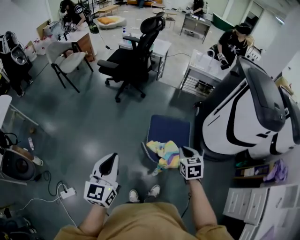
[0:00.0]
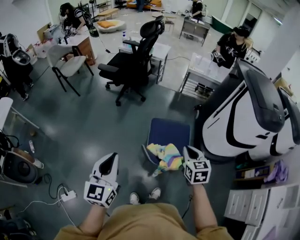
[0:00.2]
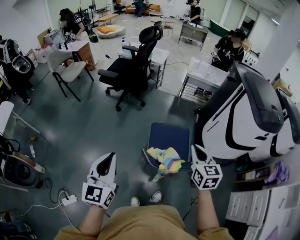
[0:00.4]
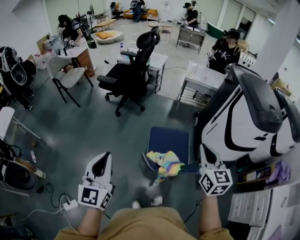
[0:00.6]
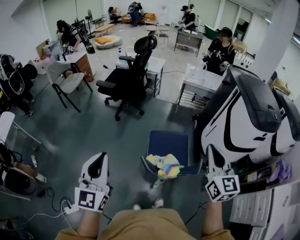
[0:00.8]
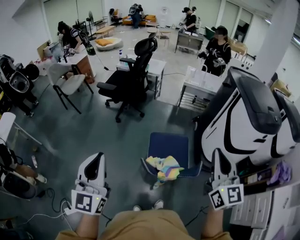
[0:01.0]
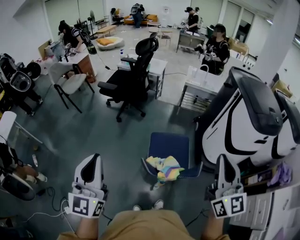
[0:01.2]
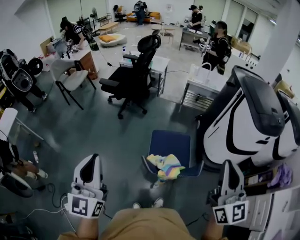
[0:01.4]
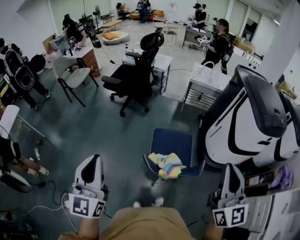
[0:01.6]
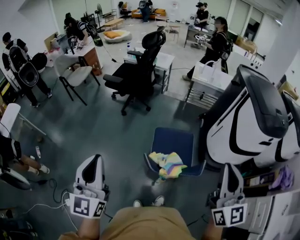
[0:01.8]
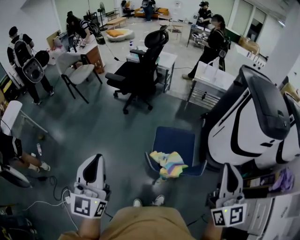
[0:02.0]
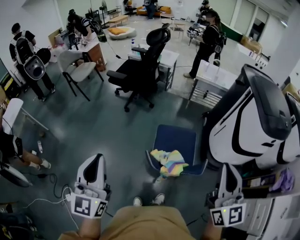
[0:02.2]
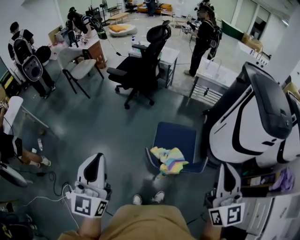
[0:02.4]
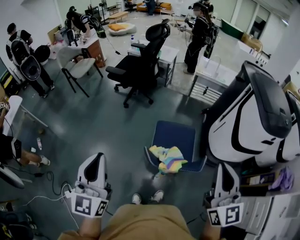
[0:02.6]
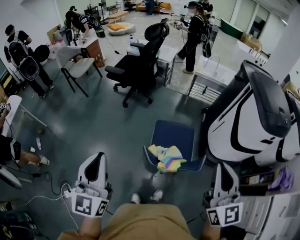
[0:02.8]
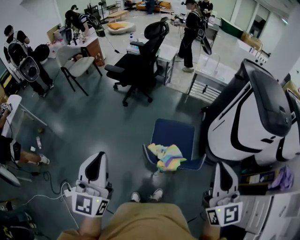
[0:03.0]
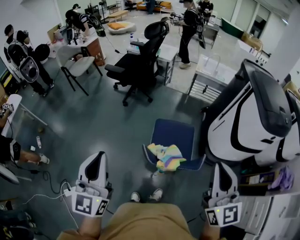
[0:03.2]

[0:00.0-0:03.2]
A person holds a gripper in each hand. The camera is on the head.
0:00.0 to 0:01.6: The left gripper goes some 15 cm upward, and changes its angle by approximately 20 degrees. Meanwhile the right gripper travels upward by some 35 cm, and points its fingers roughly 50 degrees further upward.
0:01.6 to 0:03.2: The left gripper ends up some 5 cm from where it was.

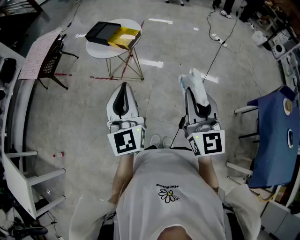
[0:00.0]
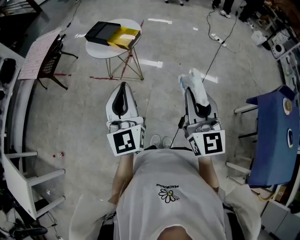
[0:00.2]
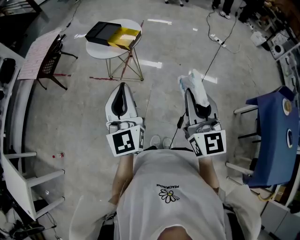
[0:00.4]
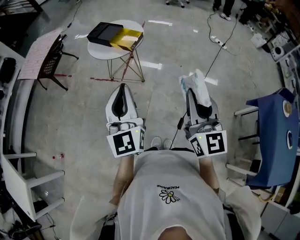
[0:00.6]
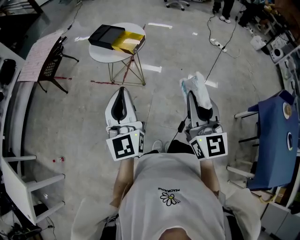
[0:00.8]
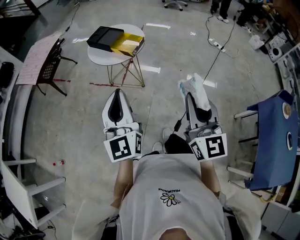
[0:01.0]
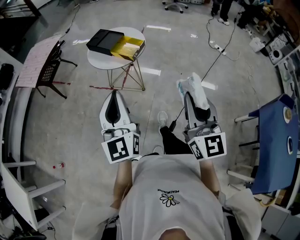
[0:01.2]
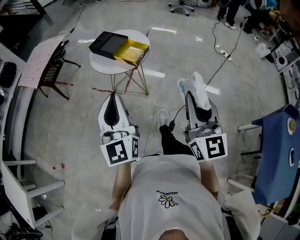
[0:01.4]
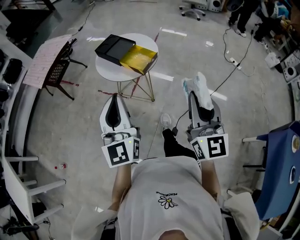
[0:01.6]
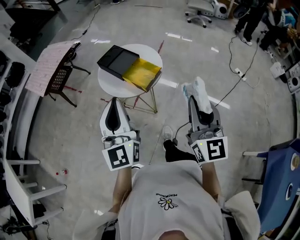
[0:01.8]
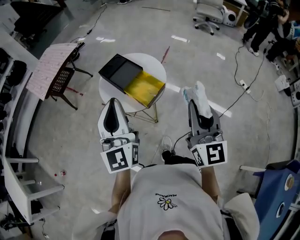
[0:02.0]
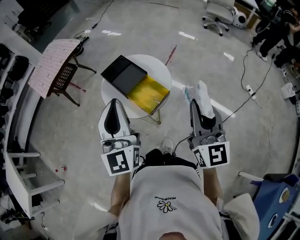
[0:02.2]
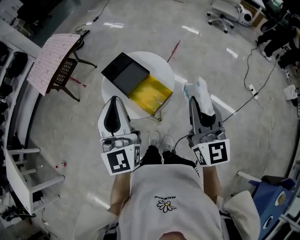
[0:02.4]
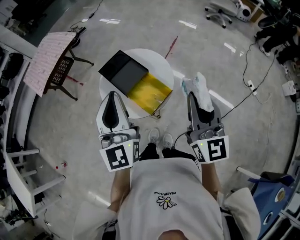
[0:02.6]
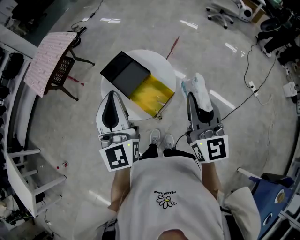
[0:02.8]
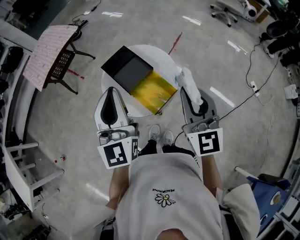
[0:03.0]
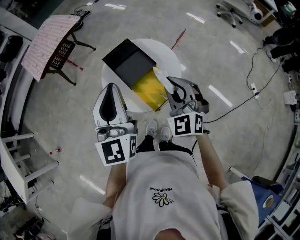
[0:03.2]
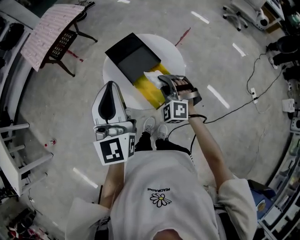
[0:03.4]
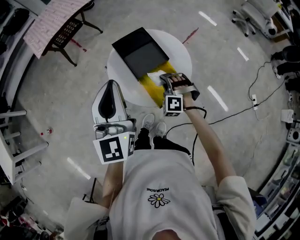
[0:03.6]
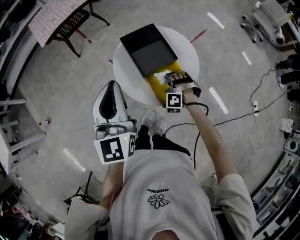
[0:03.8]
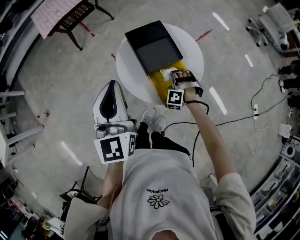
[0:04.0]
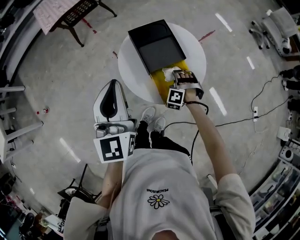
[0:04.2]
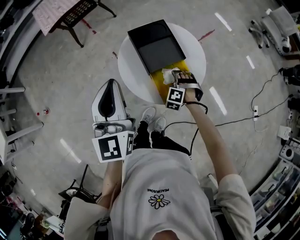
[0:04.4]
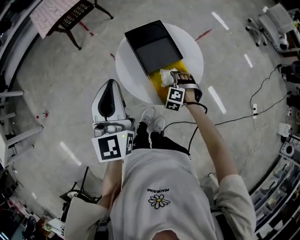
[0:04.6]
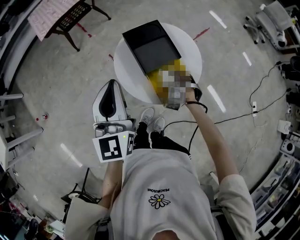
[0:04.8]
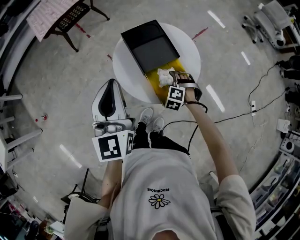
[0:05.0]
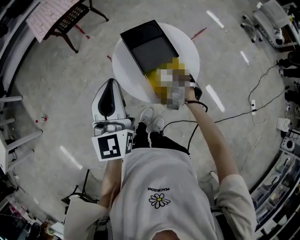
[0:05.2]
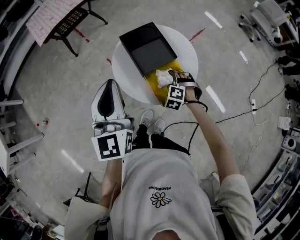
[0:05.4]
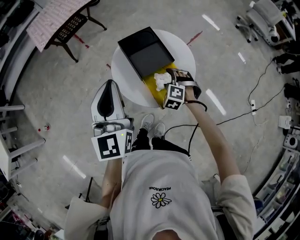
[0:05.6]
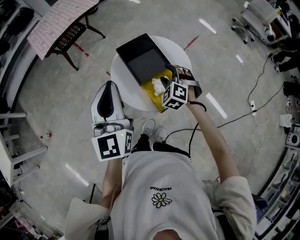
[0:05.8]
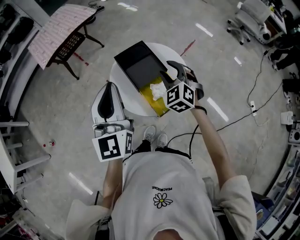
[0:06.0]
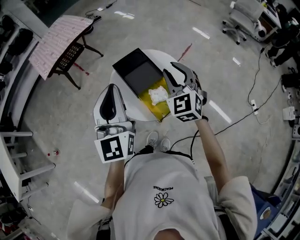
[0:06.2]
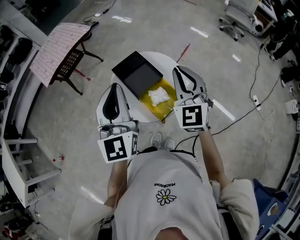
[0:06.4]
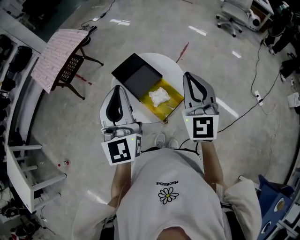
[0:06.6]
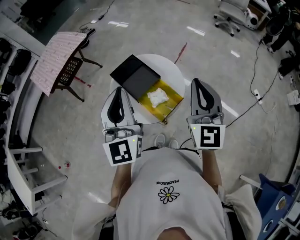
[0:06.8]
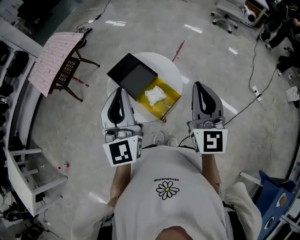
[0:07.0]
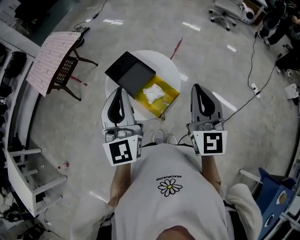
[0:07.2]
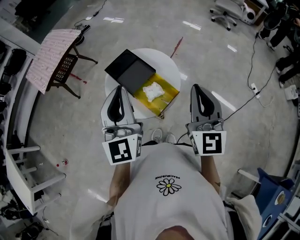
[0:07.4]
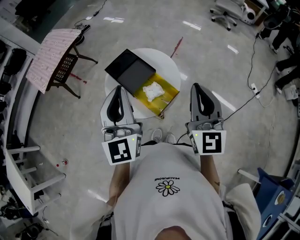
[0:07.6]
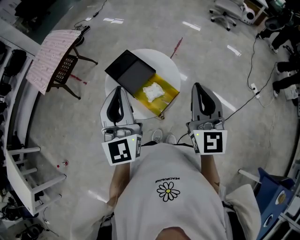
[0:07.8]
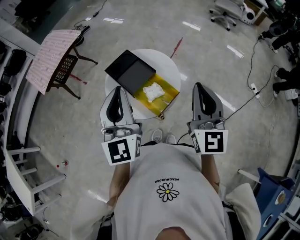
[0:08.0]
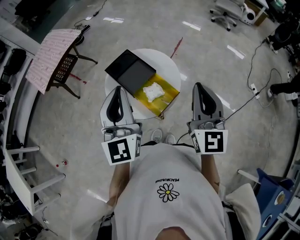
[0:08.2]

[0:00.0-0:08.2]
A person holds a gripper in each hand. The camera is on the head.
0:00.0 to 0:01.6: The right gripper heads forward, covering approximately 20 cm. The left gripper is displaced forward and to the left by some 20 cm.
0:01.6 to 0:03.2: Both grippers travel together forward, roughly 40 cm. The right gripper swivels some 50 degrees.
0:03.2 to 0:05.0: The left gripper moves to the left and downward, approximately 10 cm; the right gripper moves downward, approximately 30 cm, tilts its fingers about 50 degrees downward, and opens.
0:05.0 to 0:06.6: The right gripper shifts roughly 40 cm upward, tips its fingers upward by some 70 degrees, and closes up. Meanwhile the left gripper heads upward and to the right, covering about 15 cm, and swivels roughly 20 degrees.
0:06.6 to 0:08.2: The right gripper travels backward by approximately 5 cm.

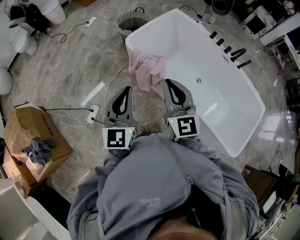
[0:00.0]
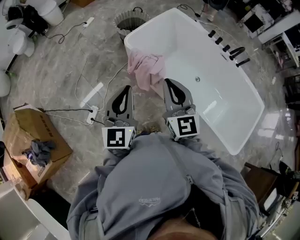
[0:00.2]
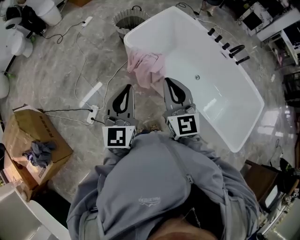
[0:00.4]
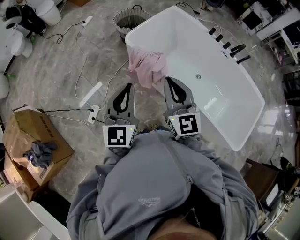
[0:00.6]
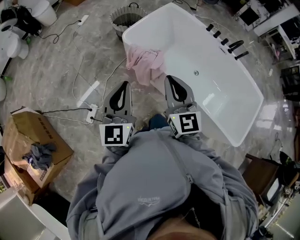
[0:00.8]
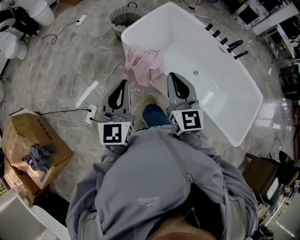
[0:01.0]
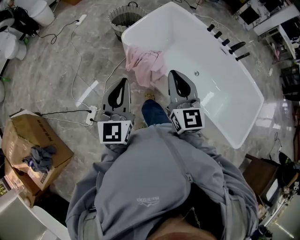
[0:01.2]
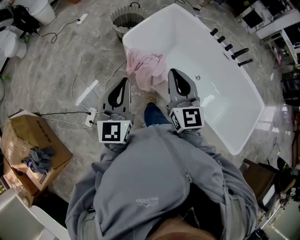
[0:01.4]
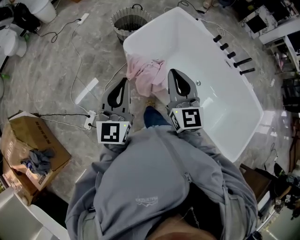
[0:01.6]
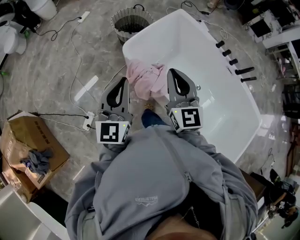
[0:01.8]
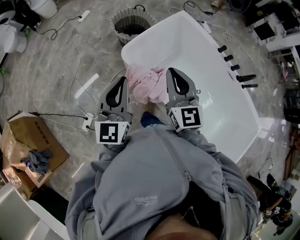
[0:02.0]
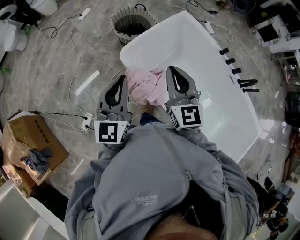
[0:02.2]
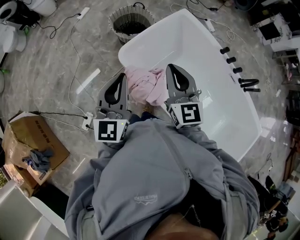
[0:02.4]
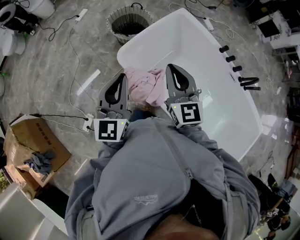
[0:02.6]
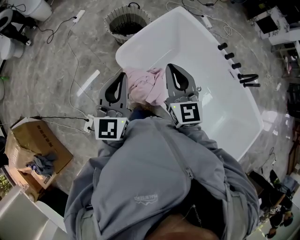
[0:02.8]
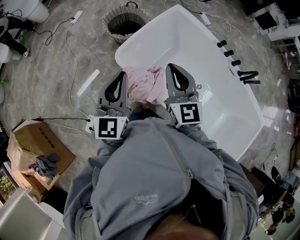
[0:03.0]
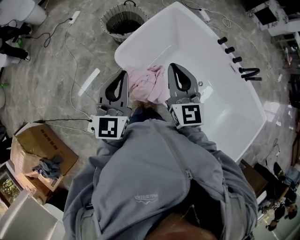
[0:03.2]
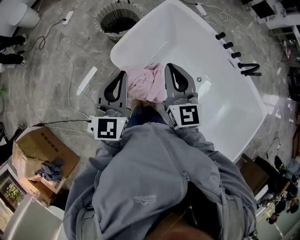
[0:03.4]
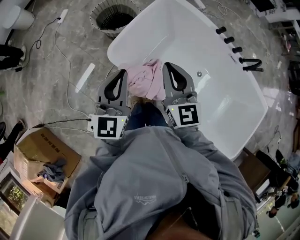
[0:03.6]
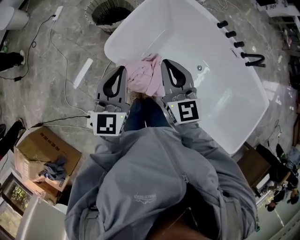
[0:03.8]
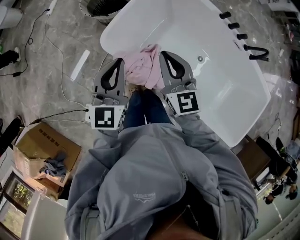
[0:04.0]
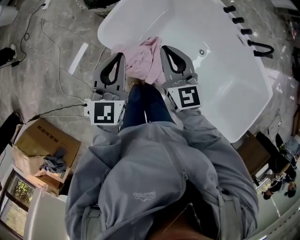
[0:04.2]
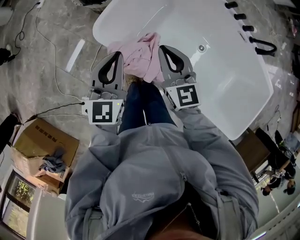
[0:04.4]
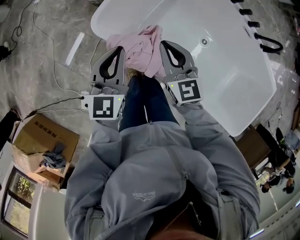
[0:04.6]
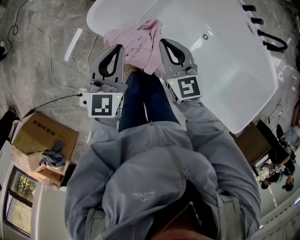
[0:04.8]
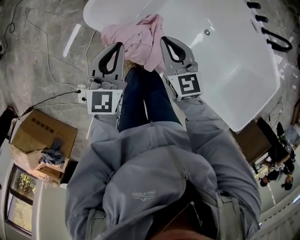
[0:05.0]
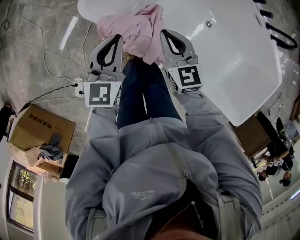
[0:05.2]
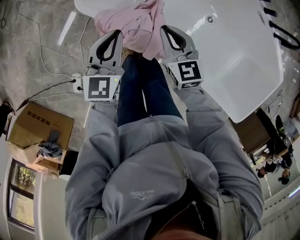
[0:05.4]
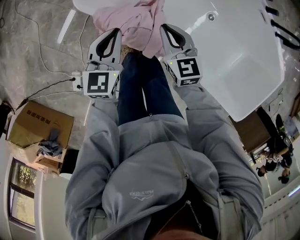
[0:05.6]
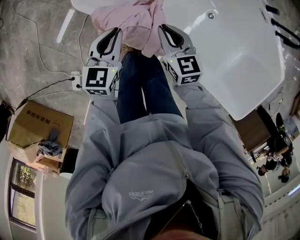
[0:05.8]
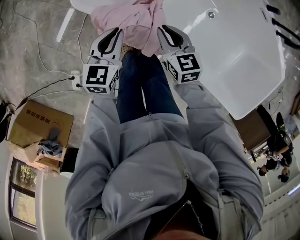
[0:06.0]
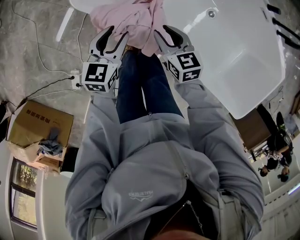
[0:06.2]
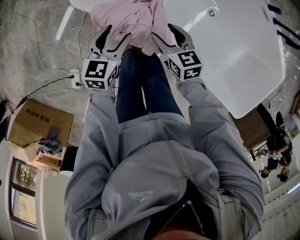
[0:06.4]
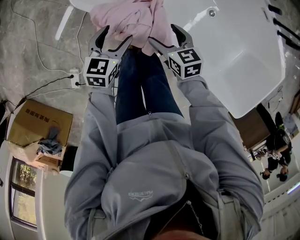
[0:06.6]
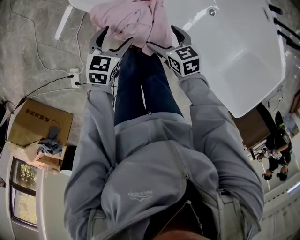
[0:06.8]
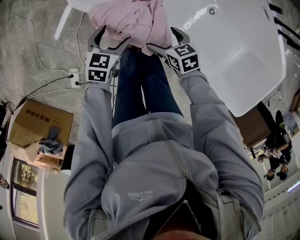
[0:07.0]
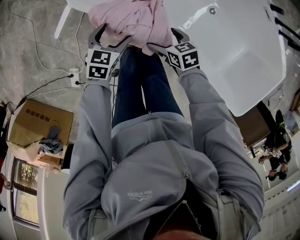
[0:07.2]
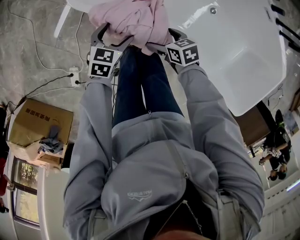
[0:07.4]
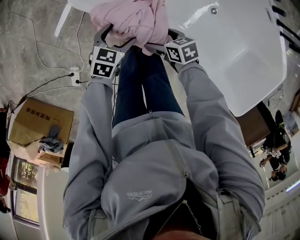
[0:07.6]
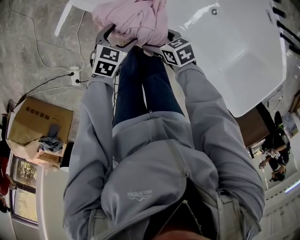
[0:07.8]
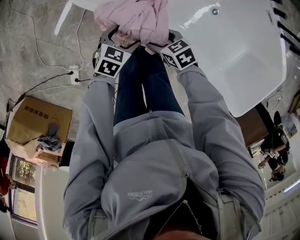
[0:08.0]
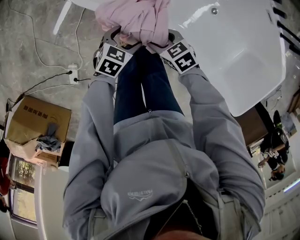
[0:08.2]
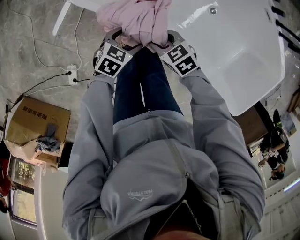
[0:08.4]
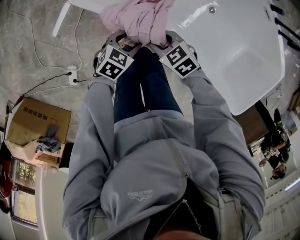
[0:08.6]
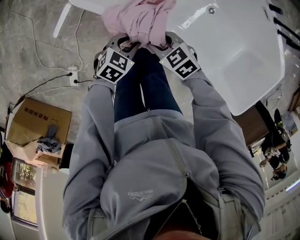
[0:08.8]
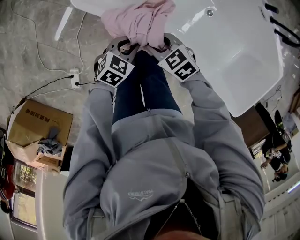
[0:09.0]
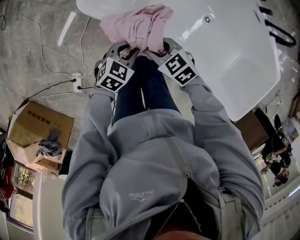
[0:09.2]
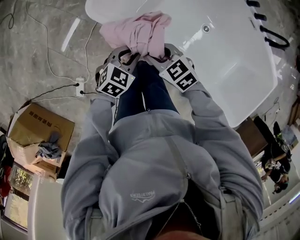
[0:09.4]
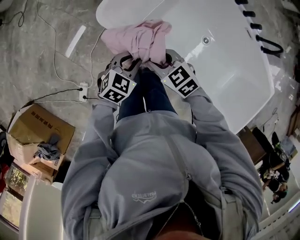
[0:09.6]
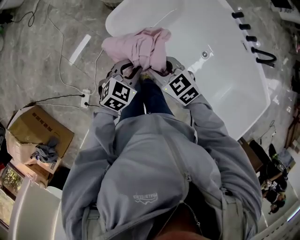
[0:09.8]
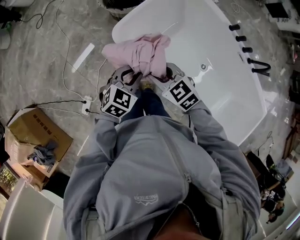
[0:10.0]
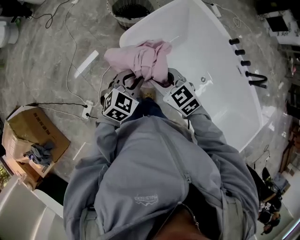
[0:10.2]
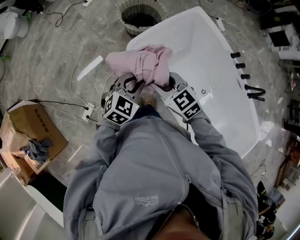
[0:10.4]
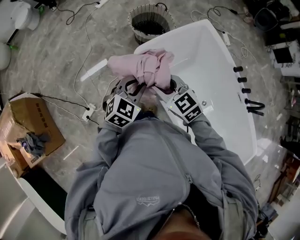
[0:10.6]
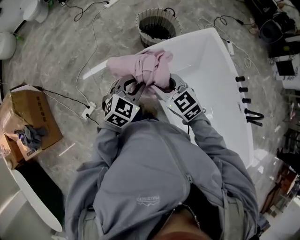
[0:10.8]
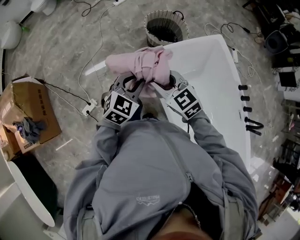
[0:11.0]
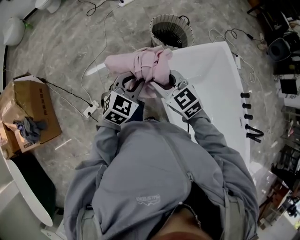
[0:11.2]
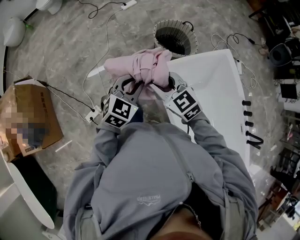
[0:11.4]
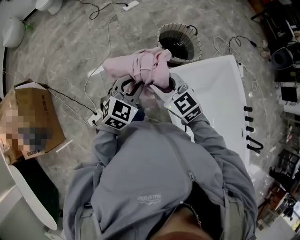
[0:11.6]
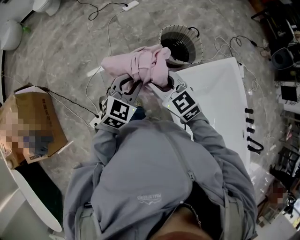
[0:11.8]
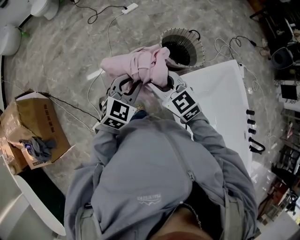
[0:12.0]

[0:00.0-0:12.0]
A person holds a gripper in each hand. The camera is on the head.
0:00.0 to 0:01.6: Both grippers move forward, some 15 cm.
0:01.6 to 0:03.0: Both grippers travel together forward, some 20 cm.
0:03.0 to 0:04.4: The grippers both shift downward by about 20 cm.
0:04.4 to 0:06.0: Both grippers move downward, about 20 cm. The right gripper changes its angle by about 20 degrees, while the left gripper turns by approximately 20 degrees.
0:06.0 to 0:07.6: The two grippers go some 10 cm downward. The left gripper swivels some 20 degrees, and opens its fingers. The right gripper swivels about 40 degrees, and opens up.
0:07.6 to 0:09.0: The left gripper ends up approximately 10 cm from where it was, and closes up. The right gripper shifts some 10 cm upward, rotates about 30 degrees, and closes up.
0:09.0 to 0:10.4: Both grippers move upward, roughly 30 cm. The left gripper turns by roughly 30 degrees; the right gripper swivels some 30 degrees.
0:10.4 to 0:12.0: Both grippers travel together forward and to the left, roughly 35 cm. The left gripper swivels about 20 degrees.
